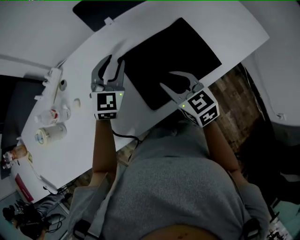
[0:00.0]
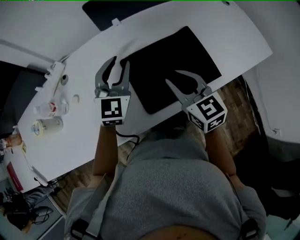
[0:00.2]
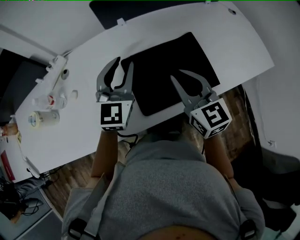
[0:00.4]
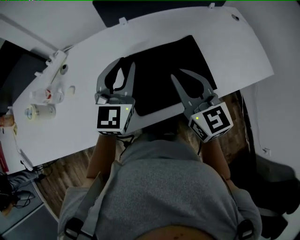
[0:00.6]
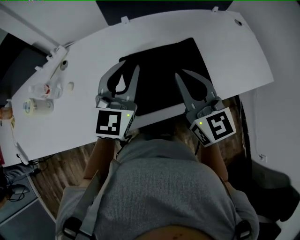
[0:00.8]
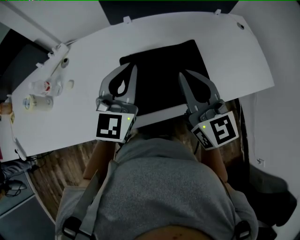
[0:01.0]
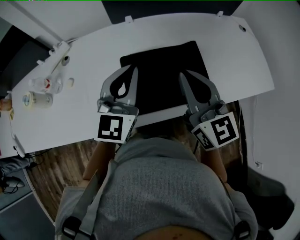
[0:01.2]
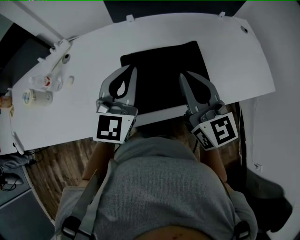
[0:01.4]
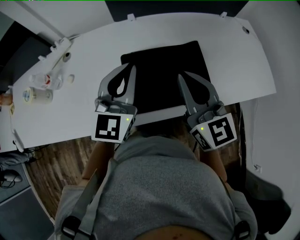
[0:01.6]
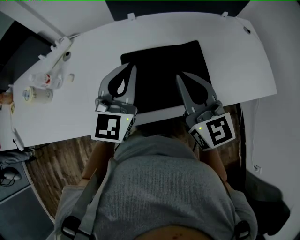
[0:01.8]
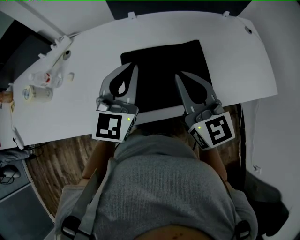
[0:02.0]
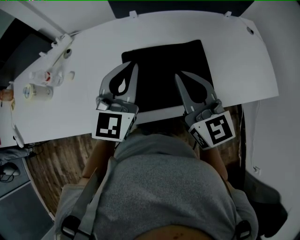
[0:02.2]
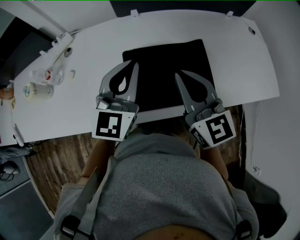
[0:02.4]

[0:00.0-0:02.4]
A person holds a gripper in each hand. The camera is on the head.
0:00.0 to 0:01.2: The right gripper goes about 15 cm upward and to the right, changes its angle by approximately 30 degrees, and closes, while the left gripper goes approximately 15 cm upward, backward and to the right, turns by roughly 20 degrees, and closes its fingers.
0:01.2 to 0:02.4: The grippers move only a little.

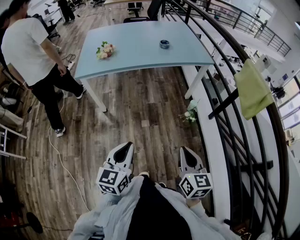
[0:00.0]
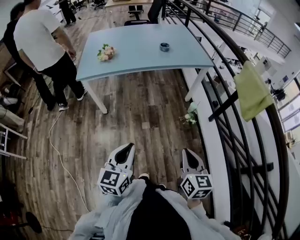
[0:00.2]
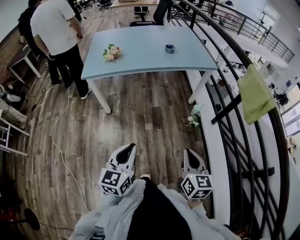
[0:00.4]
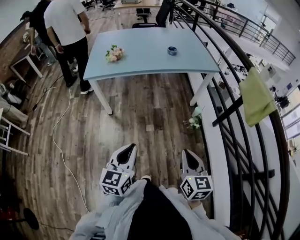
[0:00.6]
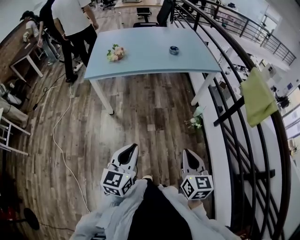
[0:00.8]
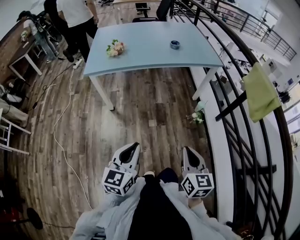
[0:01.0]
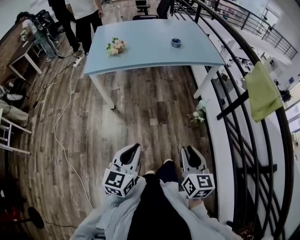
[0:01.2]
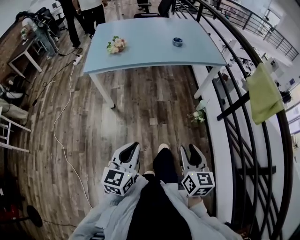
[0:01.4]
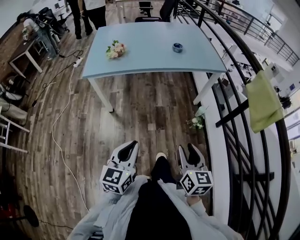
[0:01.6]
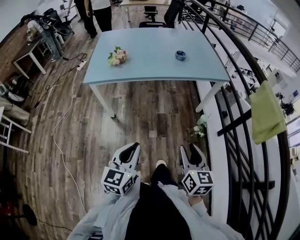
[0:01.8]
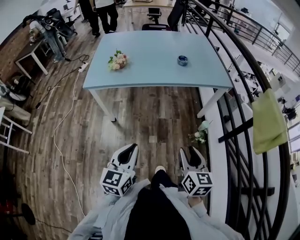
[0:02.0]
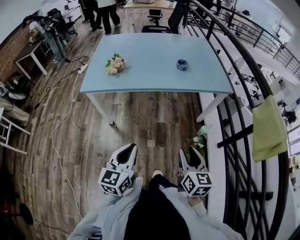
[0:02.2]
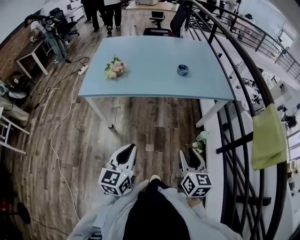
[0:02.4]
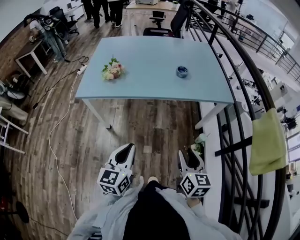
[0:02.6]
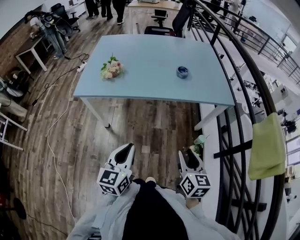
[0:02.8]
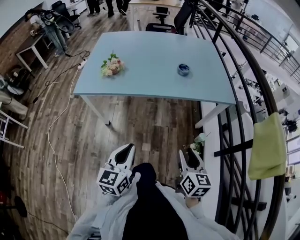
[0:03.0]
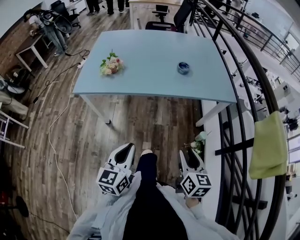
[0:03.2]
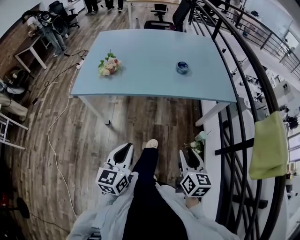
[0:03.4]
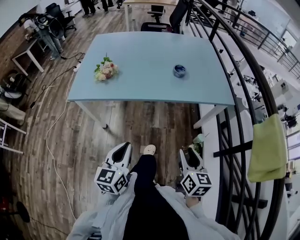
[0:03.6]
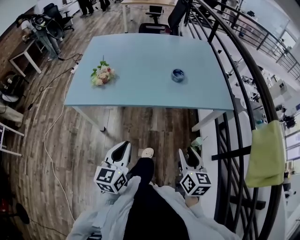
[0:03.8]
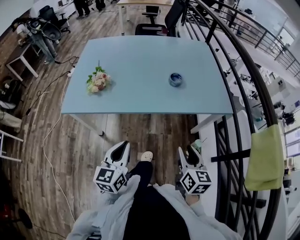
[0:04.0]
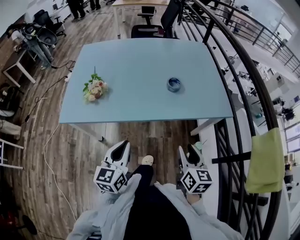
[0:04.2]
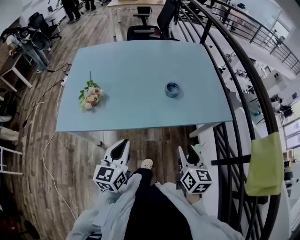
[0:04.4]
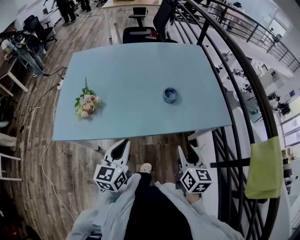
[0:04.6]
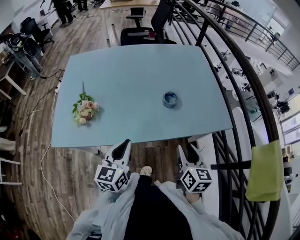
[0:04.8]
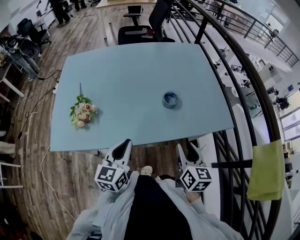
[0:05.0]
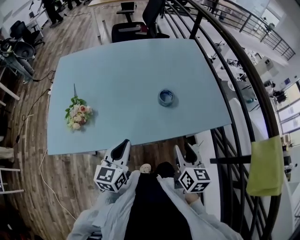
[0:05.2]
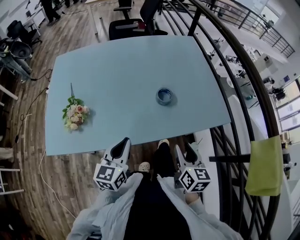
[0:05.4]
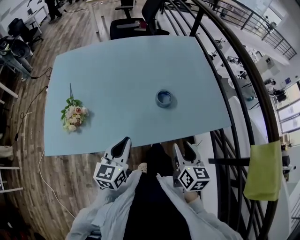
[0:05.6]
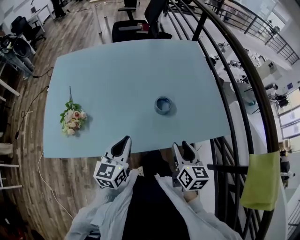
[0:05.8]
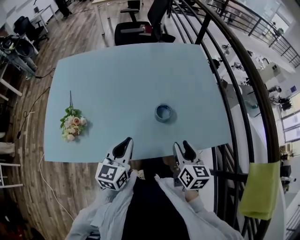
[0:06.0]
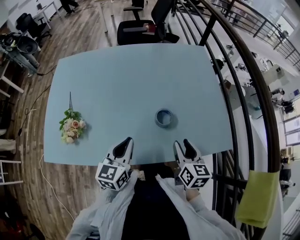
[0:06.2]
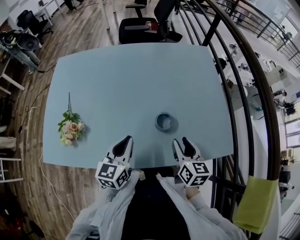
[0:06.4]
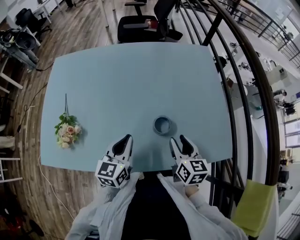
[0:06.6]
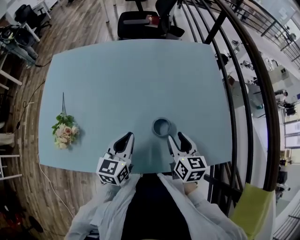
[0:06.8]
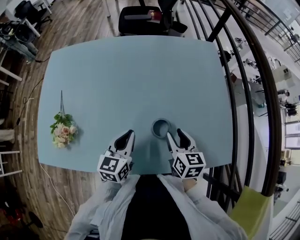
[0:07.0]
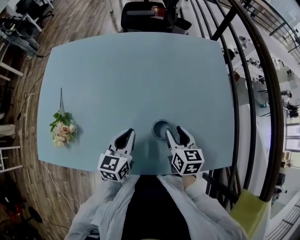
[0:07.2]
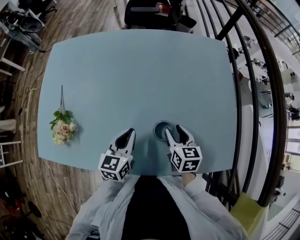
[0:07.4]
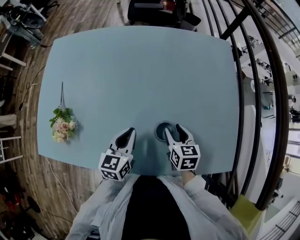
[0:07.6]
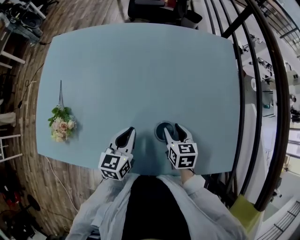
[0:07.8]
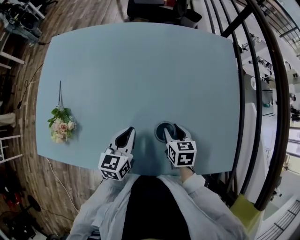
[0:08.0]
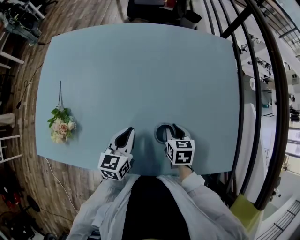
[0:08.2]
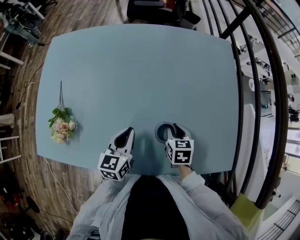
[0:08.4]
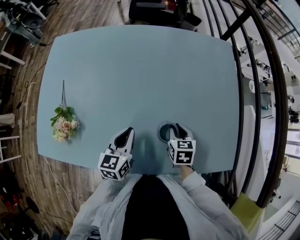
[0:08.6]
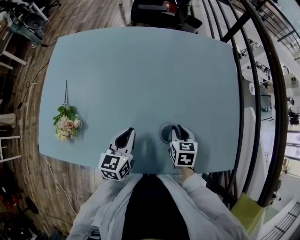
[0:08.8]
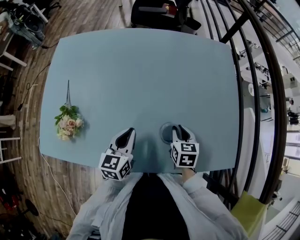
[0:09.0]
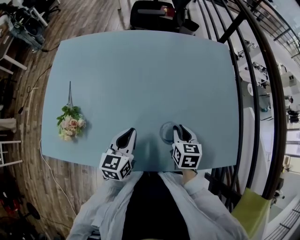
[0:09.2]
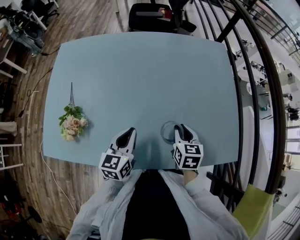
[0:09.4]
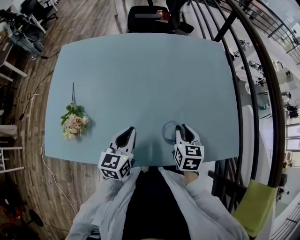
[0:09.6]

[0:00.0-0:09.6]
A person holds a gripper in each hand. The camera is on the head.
0:00.0 to 0:01.6: The right gripper is displaced forward by some 5 cm, and opens.
0:01.6 to 0:03.2: Both grippers move forward, roughly 20 cm.
0:03.2 to 0:04.8: The grippers both shift forward by roughly 30 cm.
0:04.8 to 0:06.4: Both grippers travel together forward, about 20 cm.
0:06.4 to 0:08.0: The left gripper is displaced forward and downward by roughly 10 cm; the right gripper shifts approximately 15 cm downward and forward, and swivels some 30 degrees.
0:08.0 to 0:09.6: The left gripper moves some 10 cm; the right gripper moves upward, roughly 10 cm, and closes its fingers.

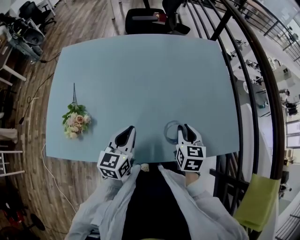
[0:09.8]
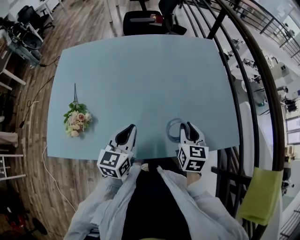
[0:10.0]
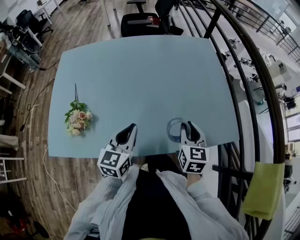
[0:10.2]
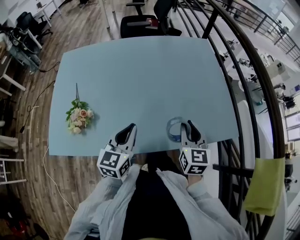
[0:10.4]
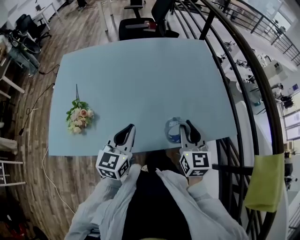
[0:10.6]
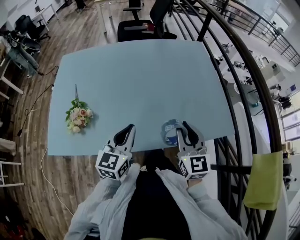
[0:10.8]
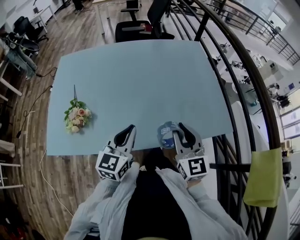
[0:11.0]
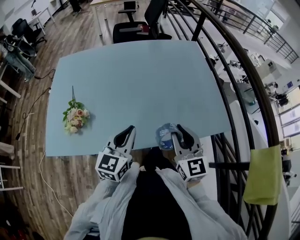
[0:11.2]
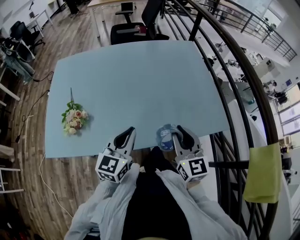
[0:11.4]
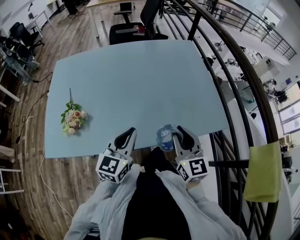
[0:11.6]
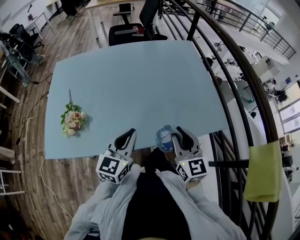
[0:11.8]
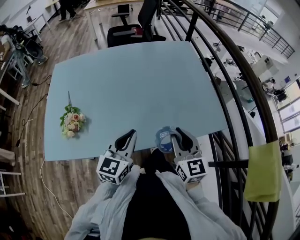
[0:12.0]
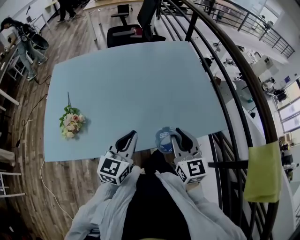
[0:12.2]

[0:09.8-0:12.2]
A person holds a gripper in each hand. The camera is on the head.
0:09.8 to 0:11.0: The left gripper moves backward and upward, some 10 cm. The right gripper moves backward and upward, about 15 cm, and turns by some 30 degrees.
0:11.0 to 0:12.2: The grippers make only small movements.

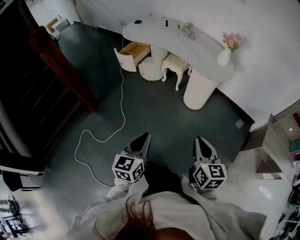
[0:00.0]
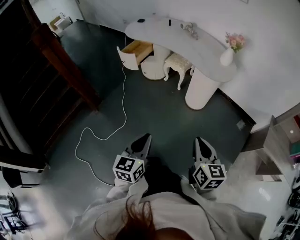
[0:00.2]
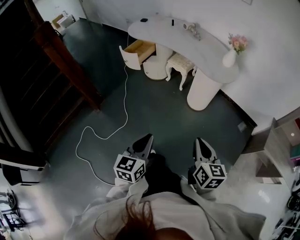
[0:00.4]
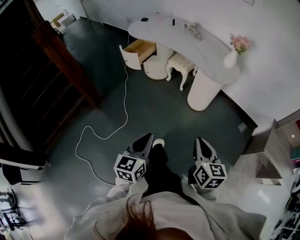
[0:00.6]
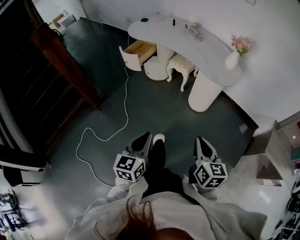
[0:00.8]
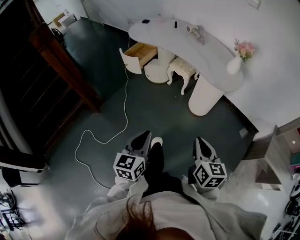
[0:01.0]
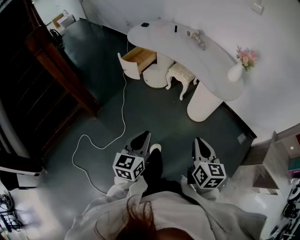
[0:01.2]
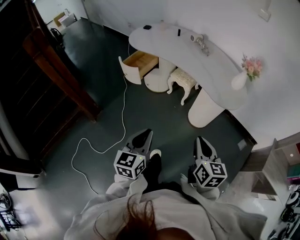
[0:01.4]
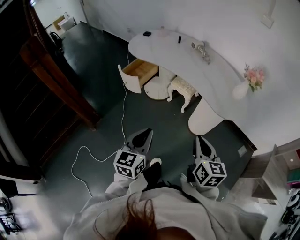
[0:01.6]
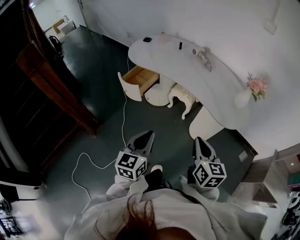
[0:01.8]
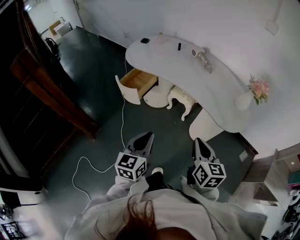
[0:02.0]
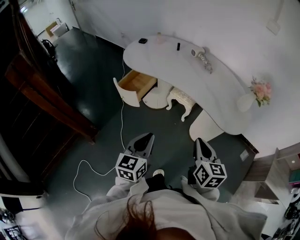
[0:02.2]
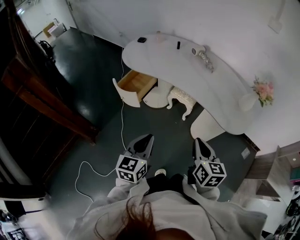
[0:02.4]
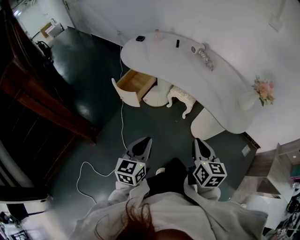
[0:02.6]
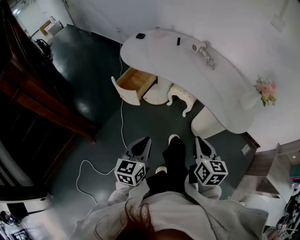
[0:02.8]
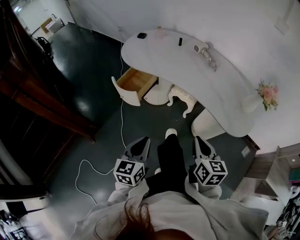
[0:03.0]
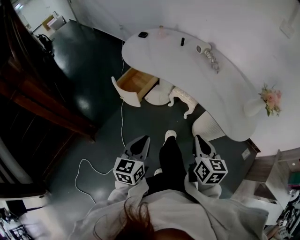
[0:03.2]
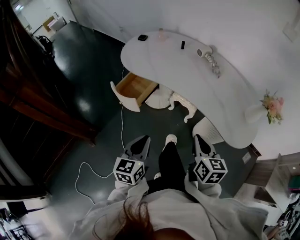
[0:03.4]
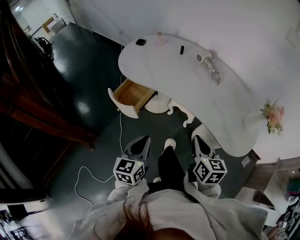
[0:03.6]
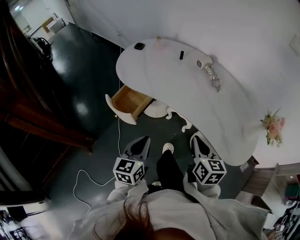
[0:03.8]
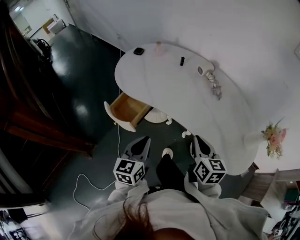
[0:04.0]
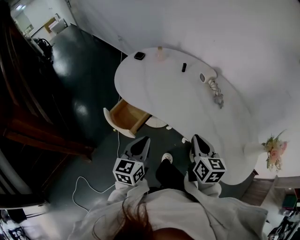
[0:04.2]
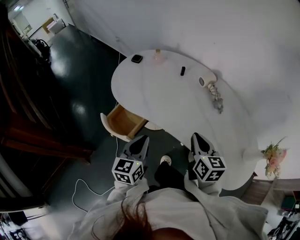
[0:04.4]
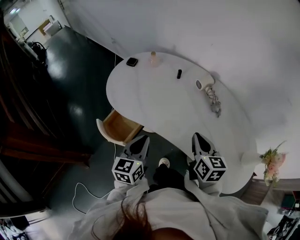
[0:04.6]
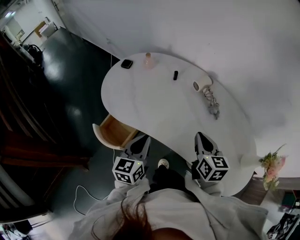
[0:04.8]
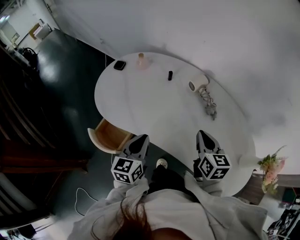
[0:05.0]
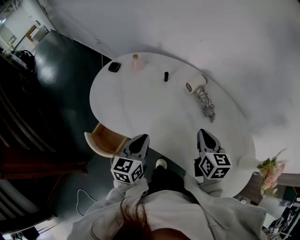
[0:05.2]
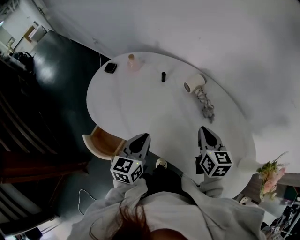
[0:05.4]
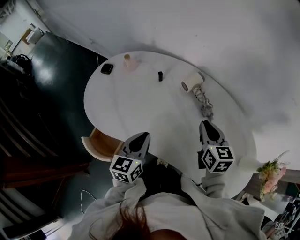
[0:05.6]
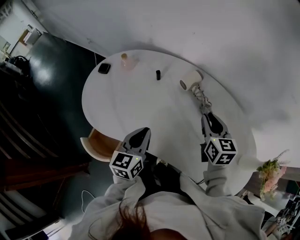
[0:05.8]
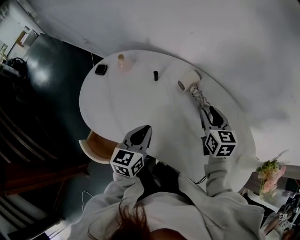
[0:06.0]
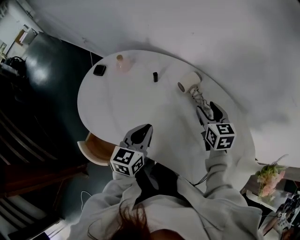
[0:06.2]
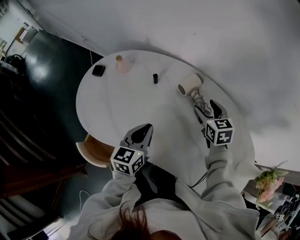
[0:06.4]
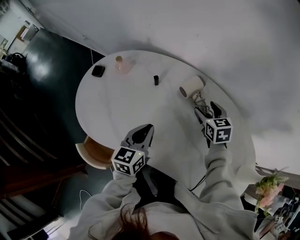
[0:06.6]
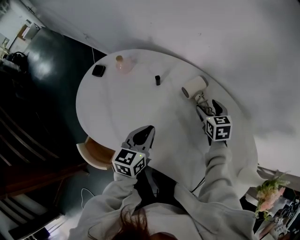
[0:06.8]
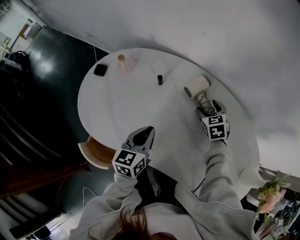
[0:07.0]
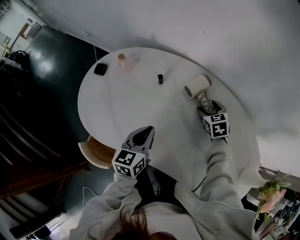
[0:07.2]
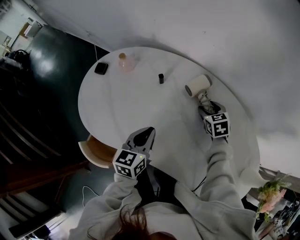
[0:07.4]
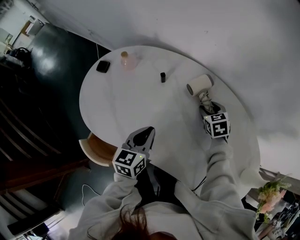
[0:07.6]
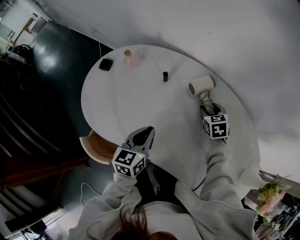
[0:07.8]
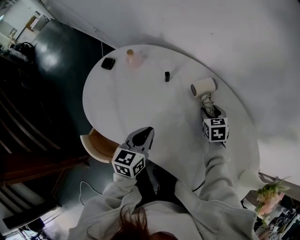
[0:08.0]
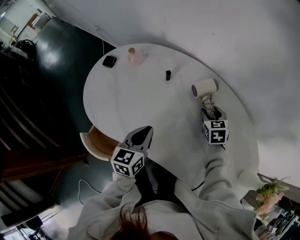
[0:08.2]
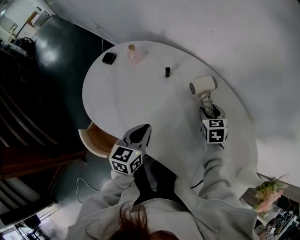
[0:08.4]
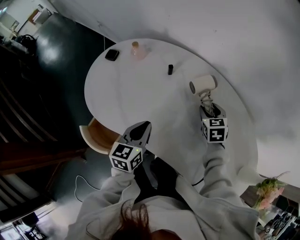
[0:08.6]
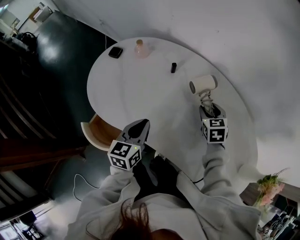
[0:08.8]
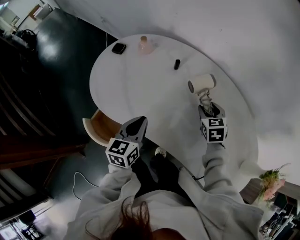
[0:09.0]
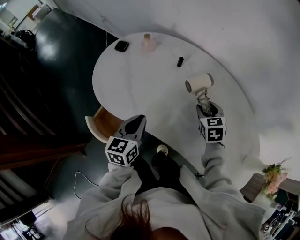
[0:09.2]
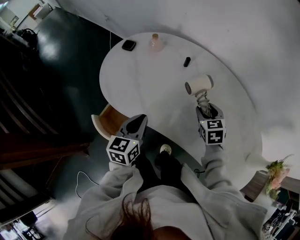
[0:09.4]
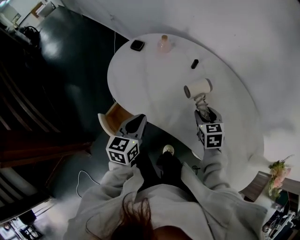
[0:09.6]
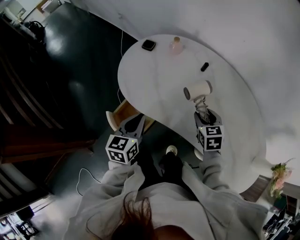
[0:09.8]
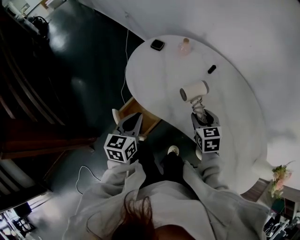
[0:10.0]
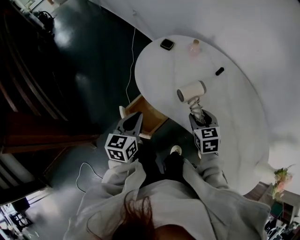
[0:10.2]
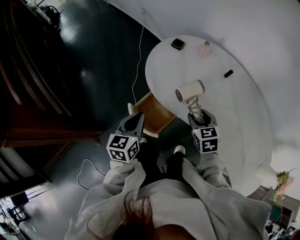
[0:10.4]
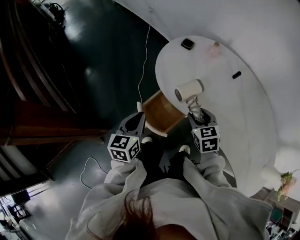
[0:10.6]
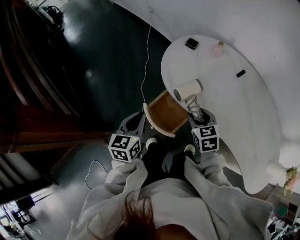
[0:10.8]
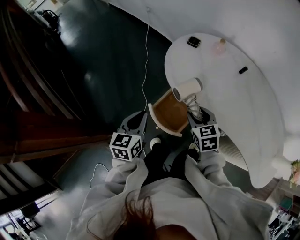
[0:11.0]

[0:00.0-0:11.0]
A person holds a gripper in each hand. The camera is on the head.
0:00.0 to 0:01.6: Both grippers move forward, roughly 25 cm.
0:01.6 to 0:03.2: The left gripper heads forward and to the left, covering approximately 20 cm. The right gripper goes approximately 20 cm forward.
0:03.2 to 0:04.8: The two grippers go approximately 35 cm forward.
0:04.8 to 0:06.2: The two grippers go about 20 cm forward and to the right. The right gripper opens up.
0:06.2 to 0:07.8: The right gripper goes about 15 cm downward and forward.
0:07.8 to 0:09.4: The left gripper shifts about 15 cm to the left and backward, while the right gripper is displaced backward, to the left and upward by roughly 15 cm.
0:09.4 to 0:11.0: Both grippers travel together to the left, some 35 cm.
